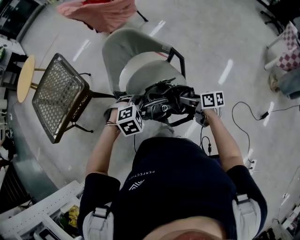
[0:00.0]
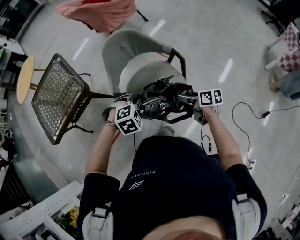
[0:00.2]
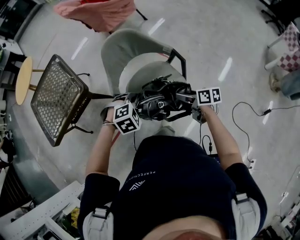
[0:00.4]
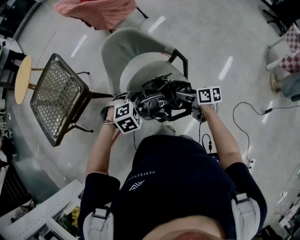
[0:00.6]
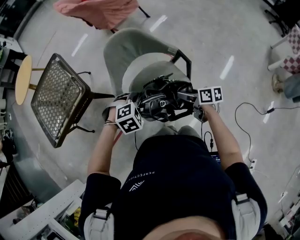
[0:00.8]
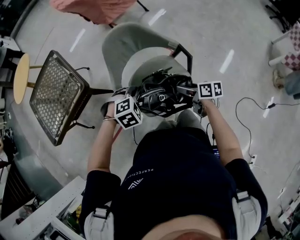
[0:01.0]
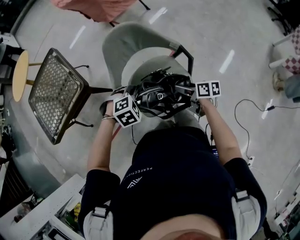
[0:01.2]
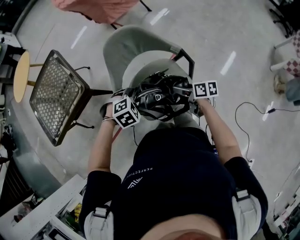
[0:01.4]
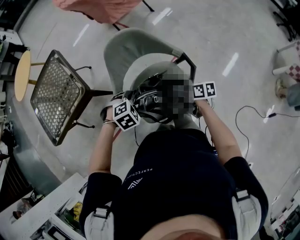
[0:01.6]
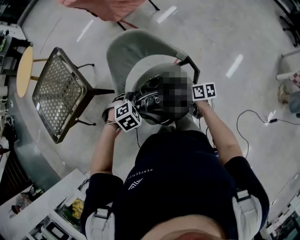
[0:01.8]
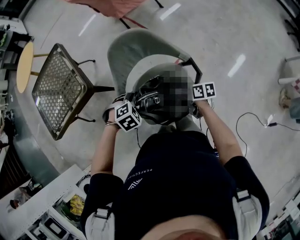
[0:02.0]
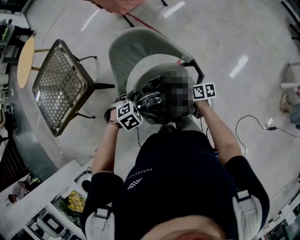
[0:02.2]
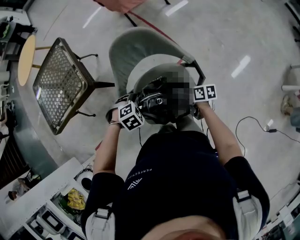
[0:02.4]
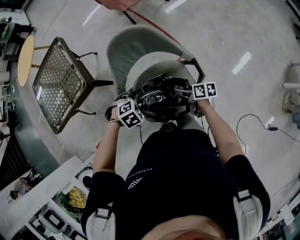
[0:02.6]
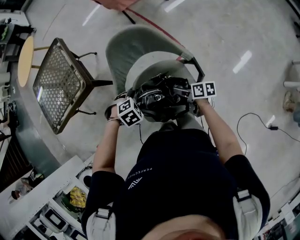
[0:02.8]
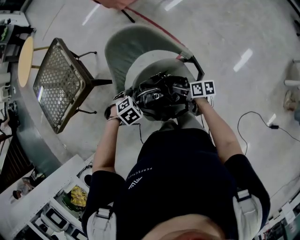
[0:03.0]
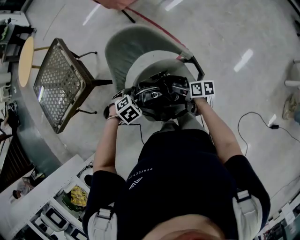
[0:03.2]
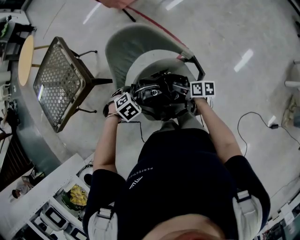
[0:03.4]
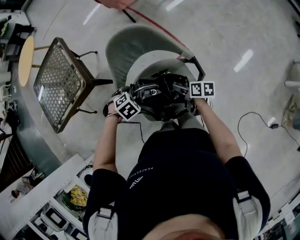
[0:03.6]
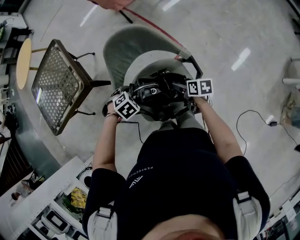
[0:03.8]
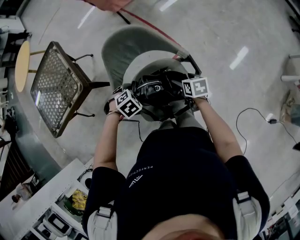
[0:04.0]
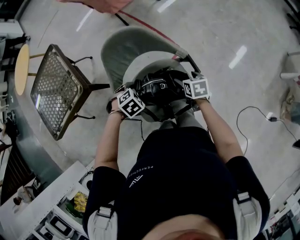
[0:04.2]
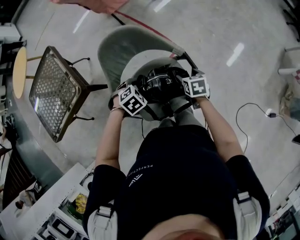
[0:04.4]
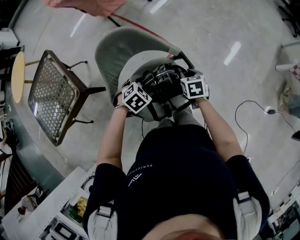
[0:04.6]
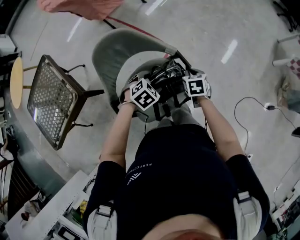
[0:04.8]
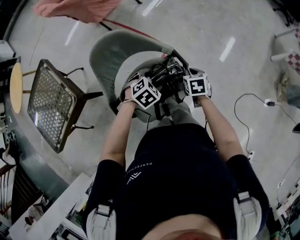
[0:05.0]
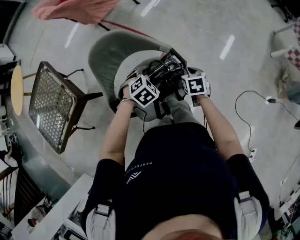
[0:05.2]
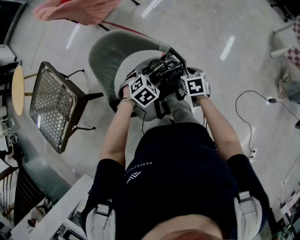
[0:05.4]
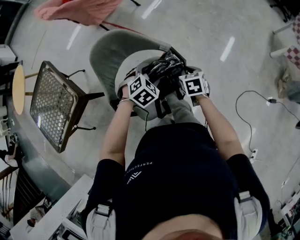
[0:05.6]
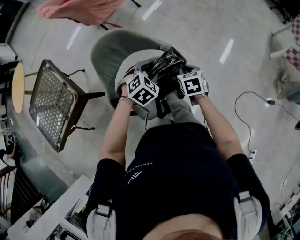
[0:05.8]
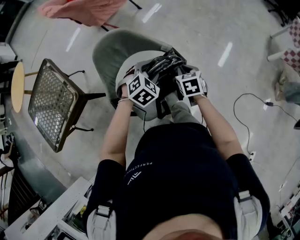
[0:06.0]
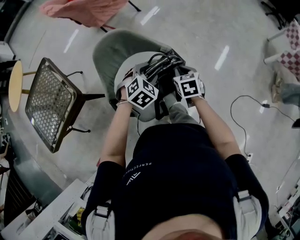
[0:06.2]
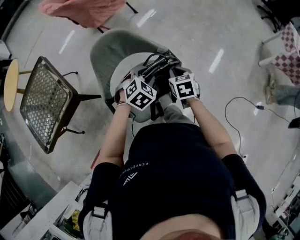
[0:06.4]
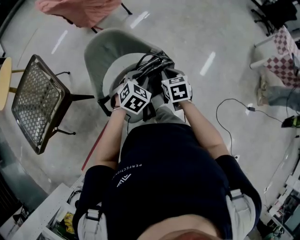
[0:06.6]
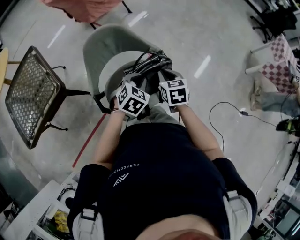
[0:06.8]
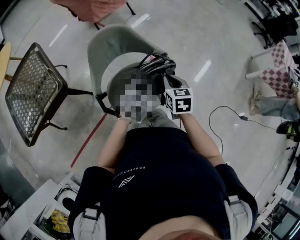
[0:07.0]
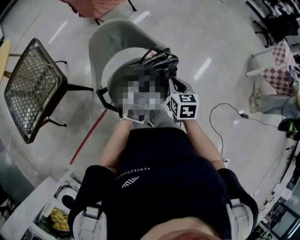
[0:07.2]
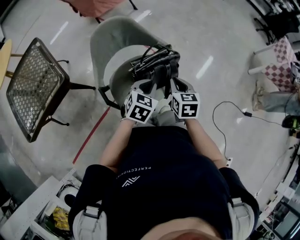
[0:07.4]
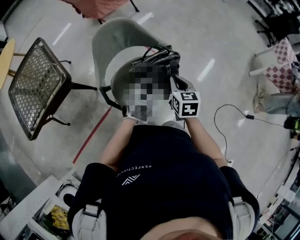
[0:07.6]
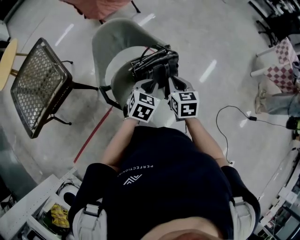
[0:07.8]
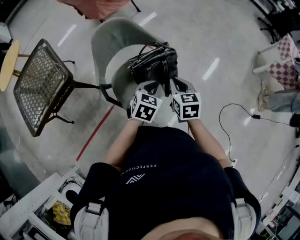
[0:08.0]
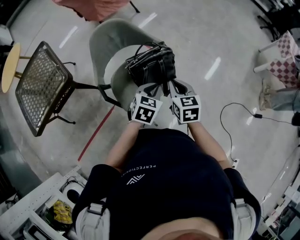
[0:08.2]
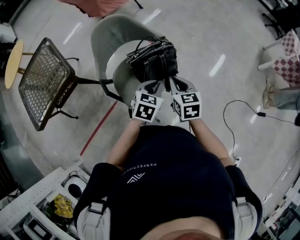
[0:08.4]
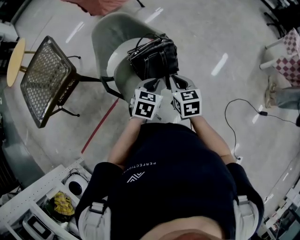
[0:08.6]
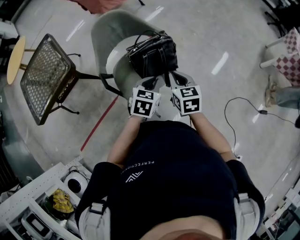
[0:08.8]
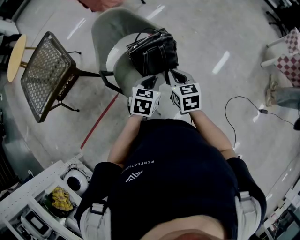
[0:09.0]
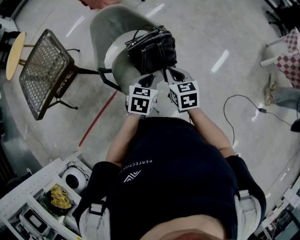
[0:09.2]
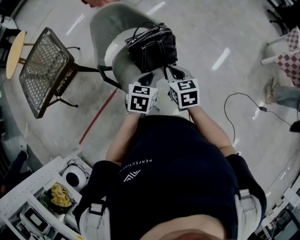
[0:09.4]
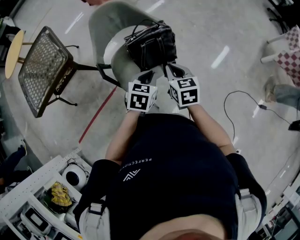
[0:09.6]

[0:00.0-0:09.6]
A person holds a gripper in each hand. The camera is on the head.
0:00.0 to 0:01.6: Both grippers travel together forward, some 15 cm.
0:01.6 to 0:03.2: Both grippers travel together downward, approximately 5 cm.
0:03.2 to 0:04.8: The left gripper shifts by some 15 cm, and rotates approximately 20 degrees. The right gripper shifts by about 10 cm, rotates about 50 degrees, and closes up.
0:04.8 to 0:06.4: The two grippers go some 10 cm upward. The left gripper closes.
0:06.4 to 0:08.0: The left gripper goes some 15 cm backward and to the right, changes its angle by approximately 30 degrees, and closes; the right gripper is displaced backward and upward by some 15 cm.
0:08.0 to 0:09.6: Both grippers travel together backward, some 5 cm.

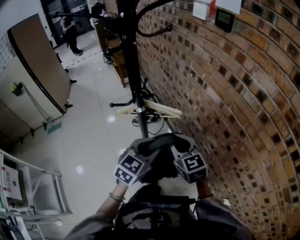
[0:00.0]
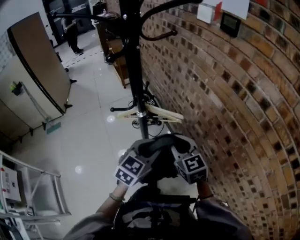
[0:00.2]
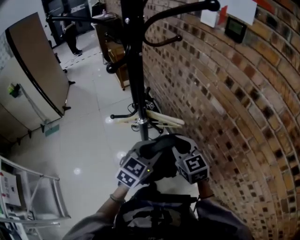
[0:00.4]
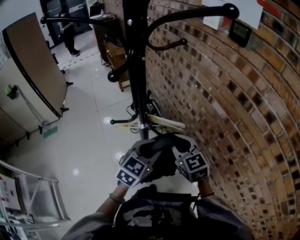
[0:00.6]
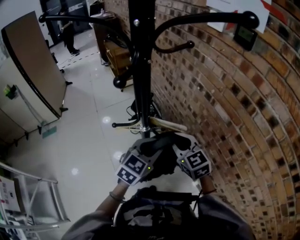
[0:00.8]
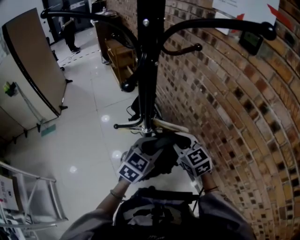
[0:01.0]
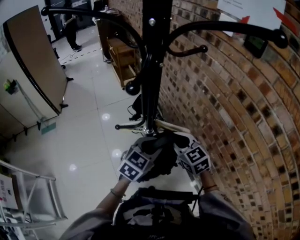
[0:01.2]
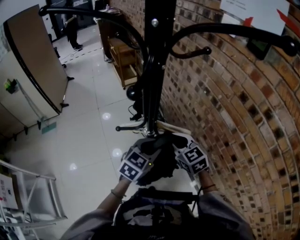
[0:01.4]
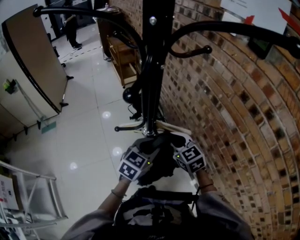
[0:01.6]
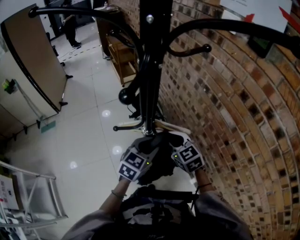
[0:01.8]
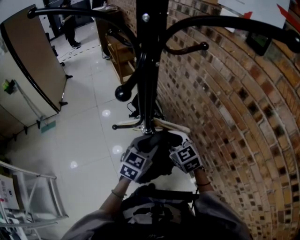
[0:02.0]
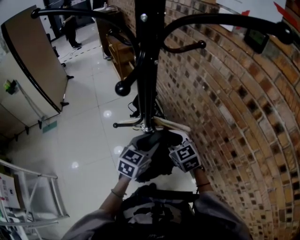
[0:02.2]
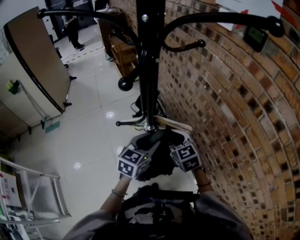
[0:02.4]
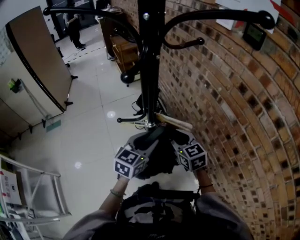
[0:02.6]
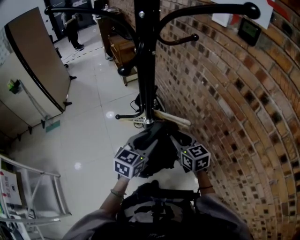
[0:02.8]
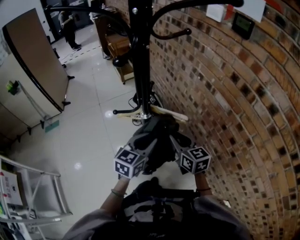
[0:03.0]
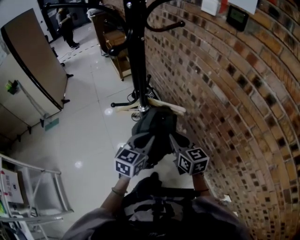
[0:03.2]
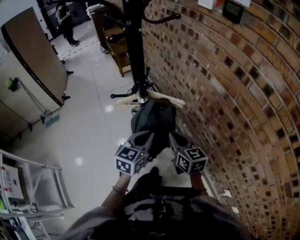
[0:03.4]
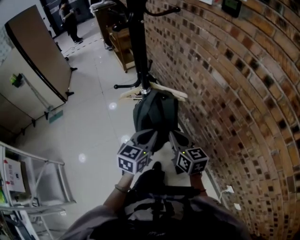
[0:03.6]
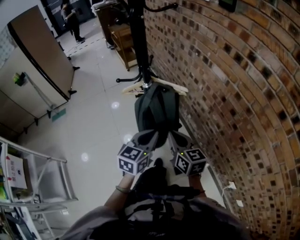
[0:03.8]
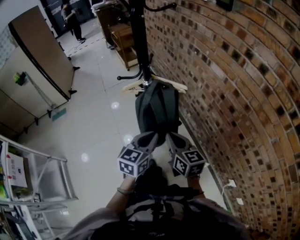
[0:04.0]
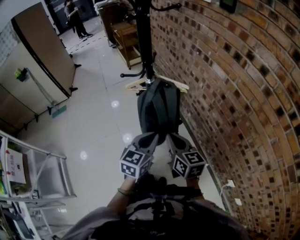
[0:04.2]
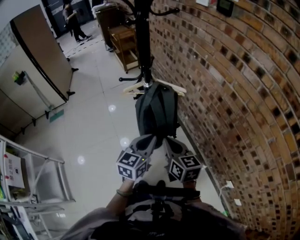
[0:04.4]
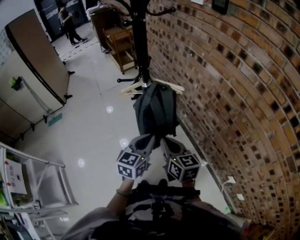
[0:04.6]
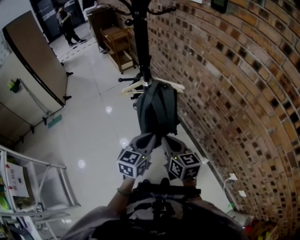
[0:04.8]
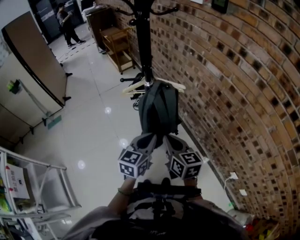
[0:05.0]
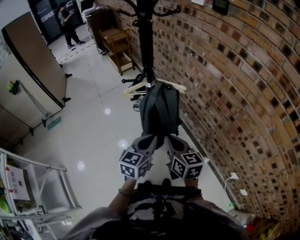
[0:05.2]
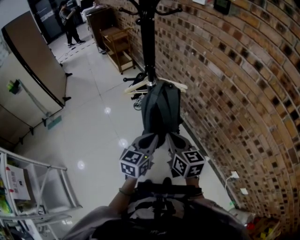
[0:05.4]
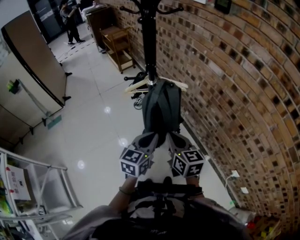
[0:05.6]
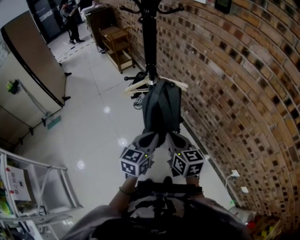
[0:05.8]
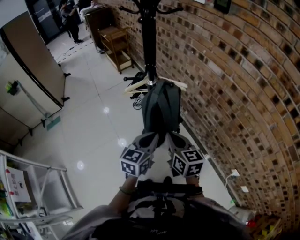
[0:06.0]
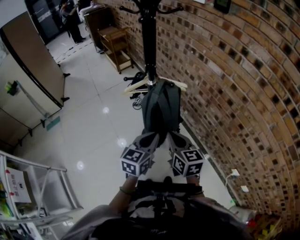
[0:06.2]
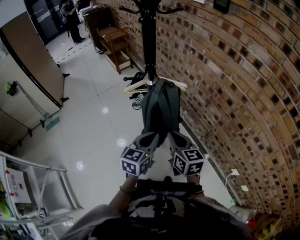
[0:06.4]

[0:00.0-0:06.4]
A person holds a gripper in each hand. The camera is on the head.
0:00.0 to 0:01.6: Both grippers move forward and to the left, approximately 15 cm.
0:01.6 to 0:03.2: The right gripper moves backward and to the right, some 10 cm, and rotates roughly 30 degrees. The left gripper goes roughly 10 cm backward.
0:03.2 to 0:04.8: Both grippers travel together backward, about 15 cm.
0:04.8 to 0:06.4: There are only small adjustments of the grippers.

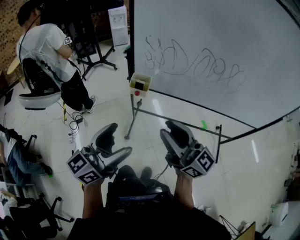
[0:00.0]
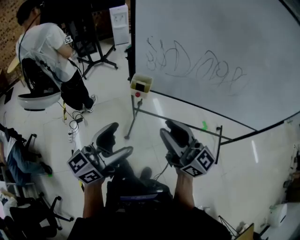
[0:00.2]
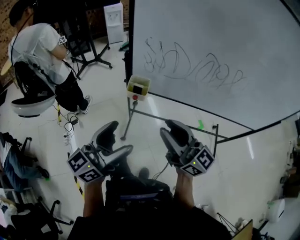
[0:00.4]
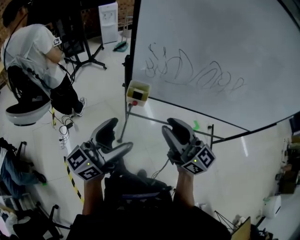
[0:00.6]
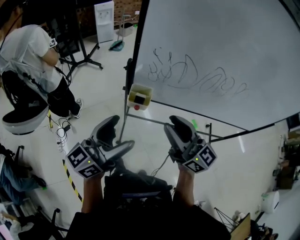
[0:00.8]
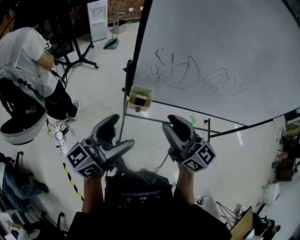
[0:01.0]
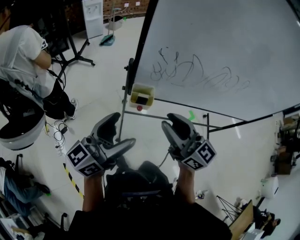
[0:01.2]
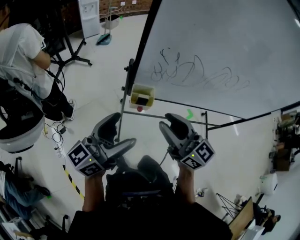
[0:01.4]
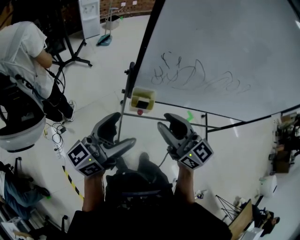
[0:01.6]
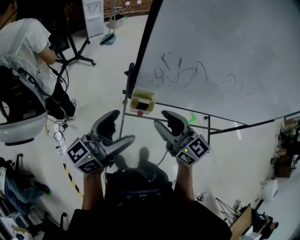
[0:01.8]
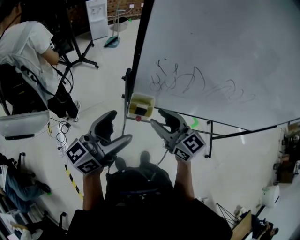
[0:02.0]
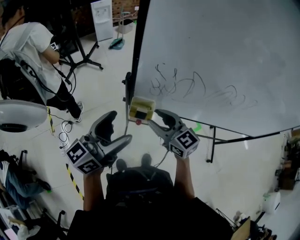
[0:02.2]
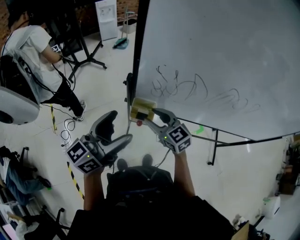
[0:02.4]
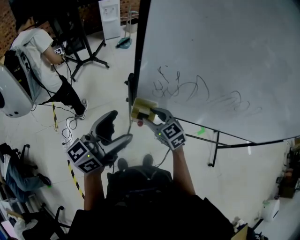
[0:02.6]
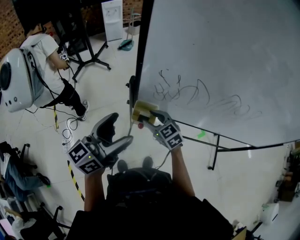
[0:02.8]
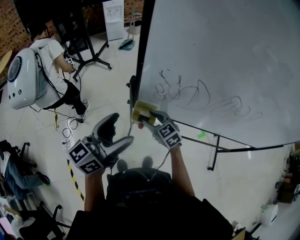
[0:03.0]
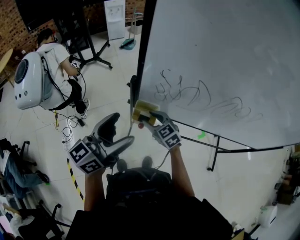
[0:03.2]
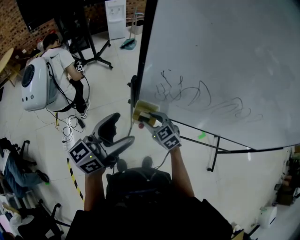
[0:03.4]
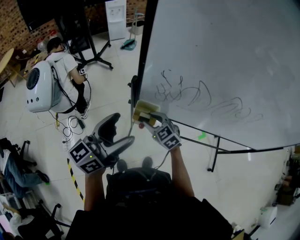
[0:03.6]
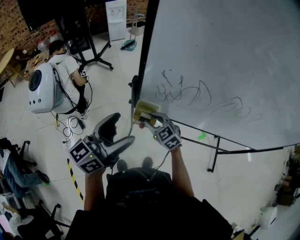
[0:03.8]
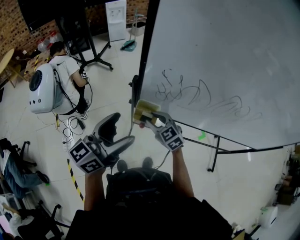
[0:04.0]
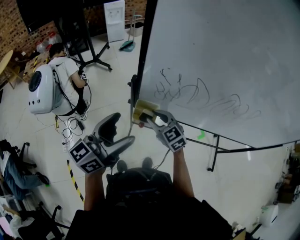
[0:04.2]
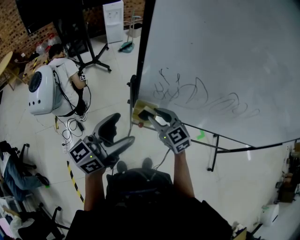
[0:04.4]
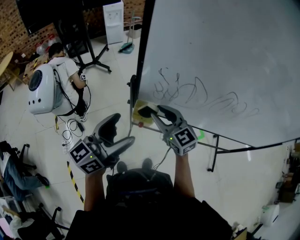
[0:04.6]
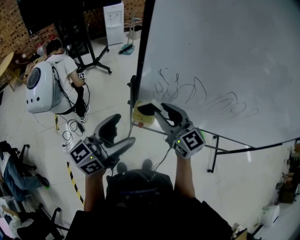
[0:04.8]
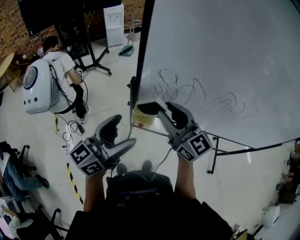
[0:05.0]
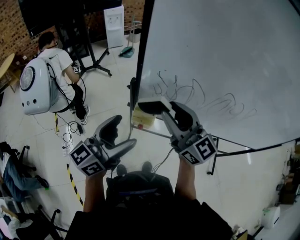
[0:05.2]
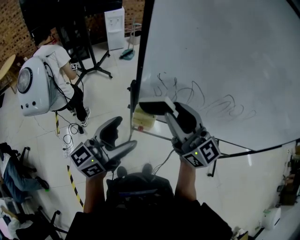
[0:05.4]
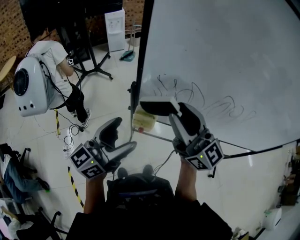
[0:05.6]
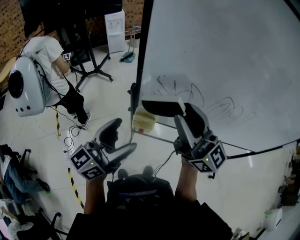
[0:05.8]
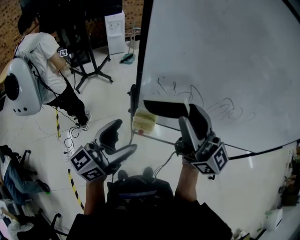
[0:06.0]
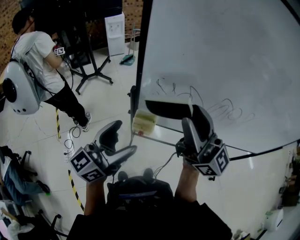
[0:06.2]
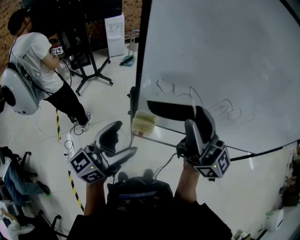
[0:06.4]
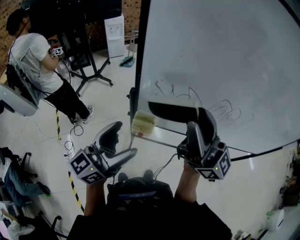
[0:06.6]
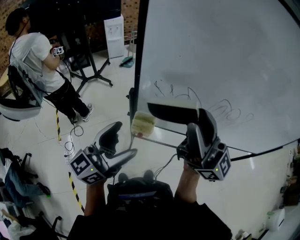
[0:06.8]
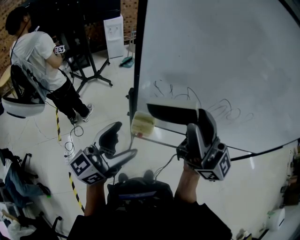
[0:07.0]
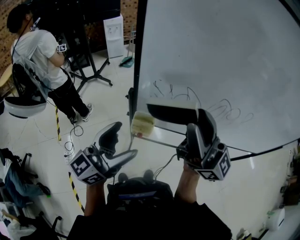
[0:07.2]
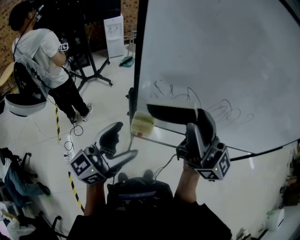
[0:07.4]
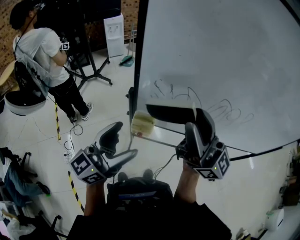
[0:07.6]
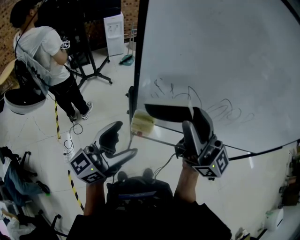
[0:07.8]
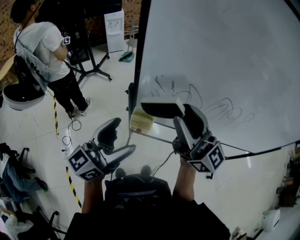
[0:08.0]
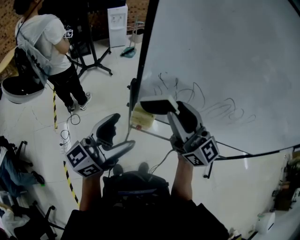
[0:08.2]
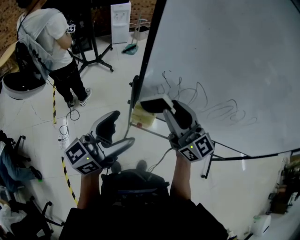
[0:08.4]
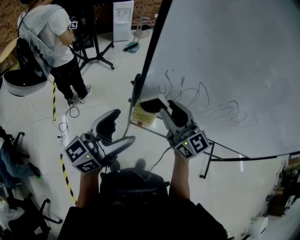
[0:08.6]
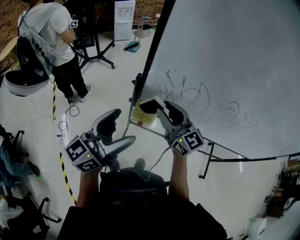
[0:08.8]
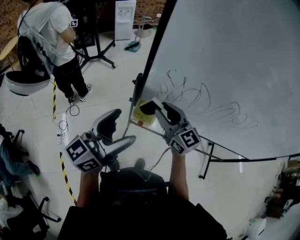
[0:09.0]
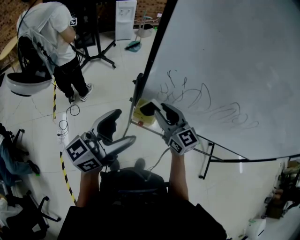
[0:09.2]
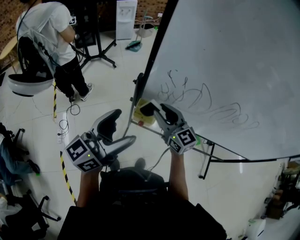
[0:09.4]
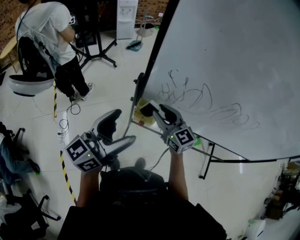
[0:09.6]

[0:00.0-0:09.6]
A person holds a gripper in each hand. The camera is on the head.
0:00.0 to 0:01.6: The two grippers go approximately 25 cm forward and to the left. The right gripper changes its angle by approximately 20 degrees.
0:01.6 to 0:03.2: The left gripper shifts about 5 cm forward; the right gripper travels downward and forward by approximately 25 cm, and angles its fingers downward, by approximately 30 degrees.
0:03.2 to 0:04.8: The right gripper moves upward, some 20 cm, and turns by roughly 30 degrees.
0:04.8 to 0:06.4: The right gripper goes roughly 20 cm upward, and angles its fingers upward, by roughly 40 degrees.
0:06.4 to 0:08.0: The grippers make only small movements.
0:08.0 to 0:09.6: The right gripper is displaced downward by about 25 cm, and angles its fingers downward, by approximately 30 degrees.
